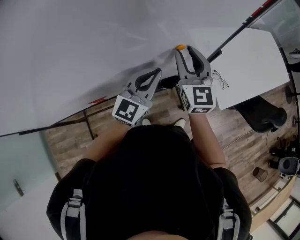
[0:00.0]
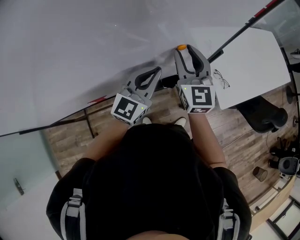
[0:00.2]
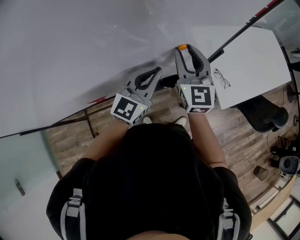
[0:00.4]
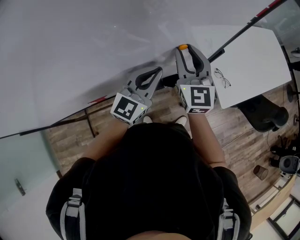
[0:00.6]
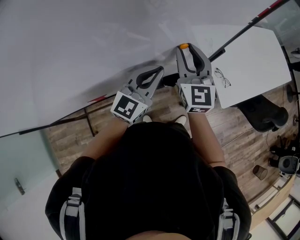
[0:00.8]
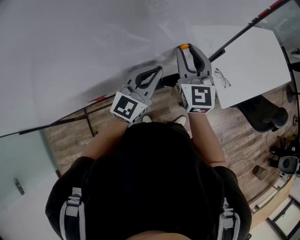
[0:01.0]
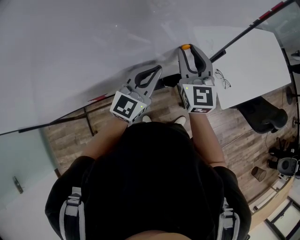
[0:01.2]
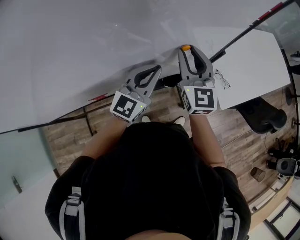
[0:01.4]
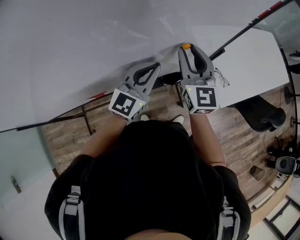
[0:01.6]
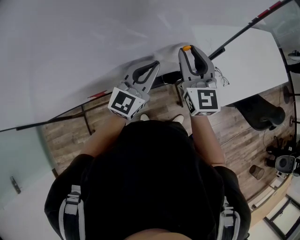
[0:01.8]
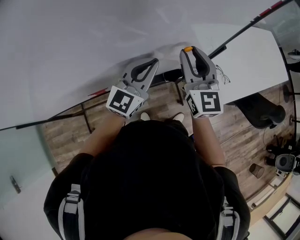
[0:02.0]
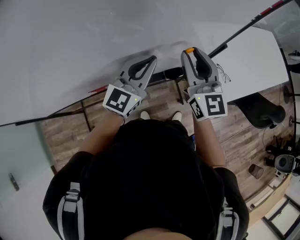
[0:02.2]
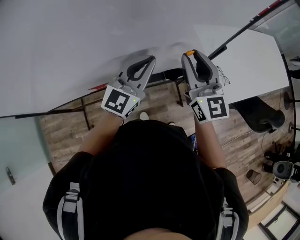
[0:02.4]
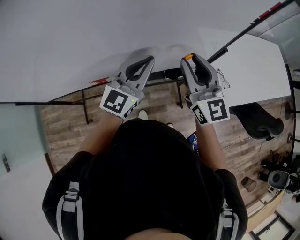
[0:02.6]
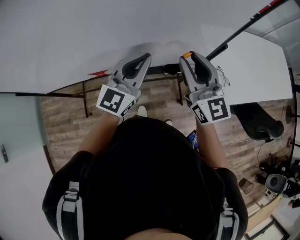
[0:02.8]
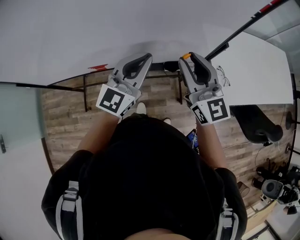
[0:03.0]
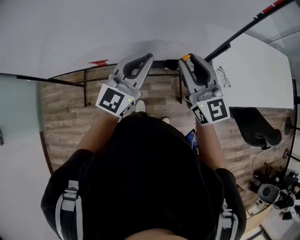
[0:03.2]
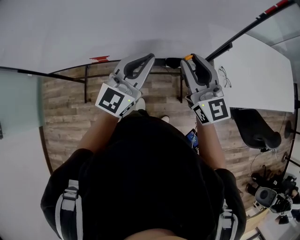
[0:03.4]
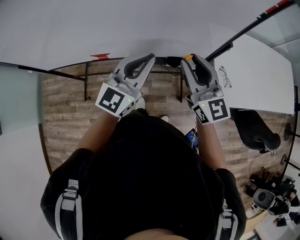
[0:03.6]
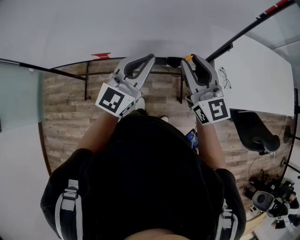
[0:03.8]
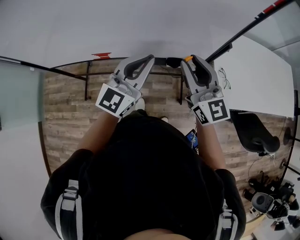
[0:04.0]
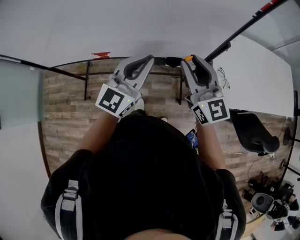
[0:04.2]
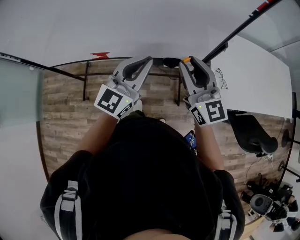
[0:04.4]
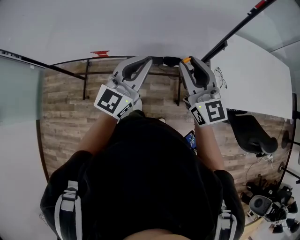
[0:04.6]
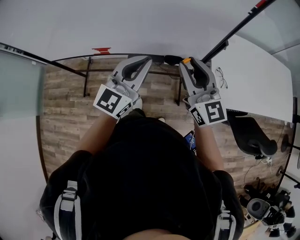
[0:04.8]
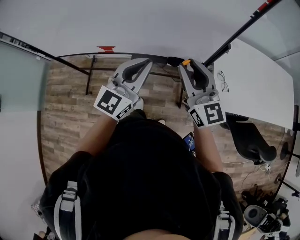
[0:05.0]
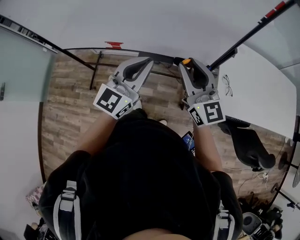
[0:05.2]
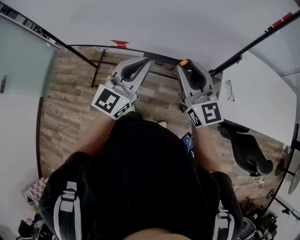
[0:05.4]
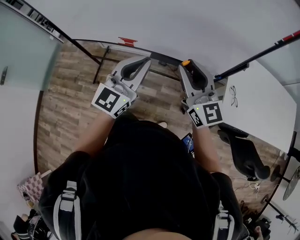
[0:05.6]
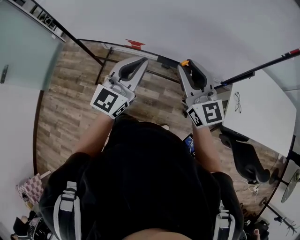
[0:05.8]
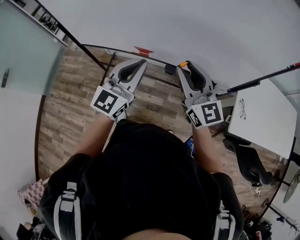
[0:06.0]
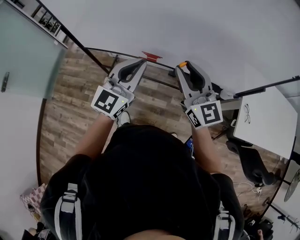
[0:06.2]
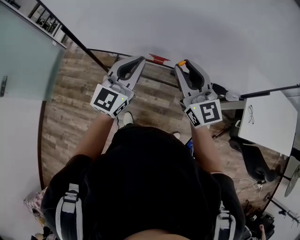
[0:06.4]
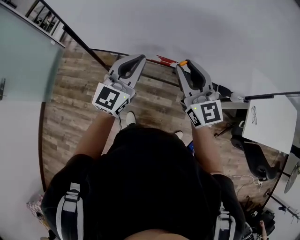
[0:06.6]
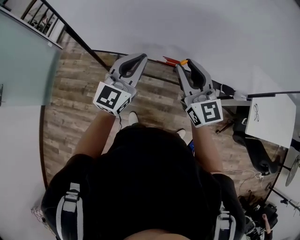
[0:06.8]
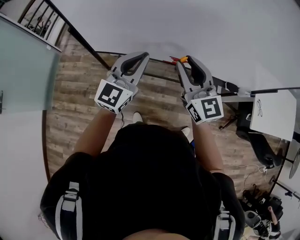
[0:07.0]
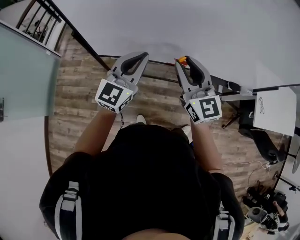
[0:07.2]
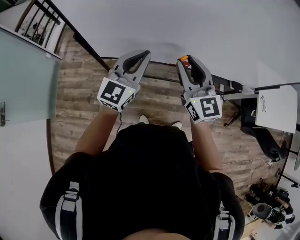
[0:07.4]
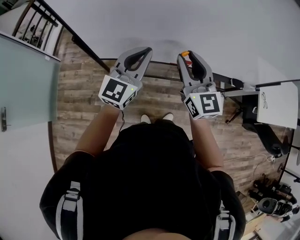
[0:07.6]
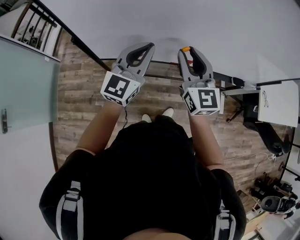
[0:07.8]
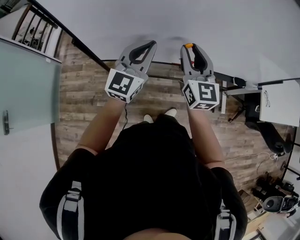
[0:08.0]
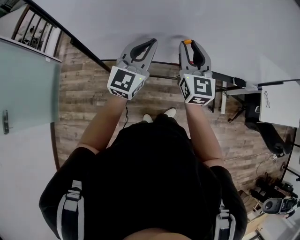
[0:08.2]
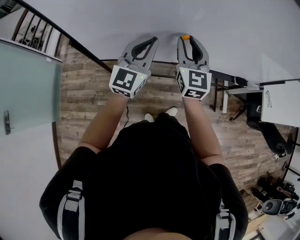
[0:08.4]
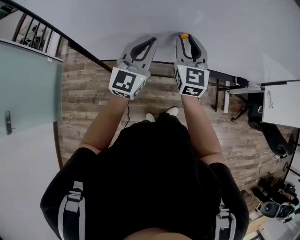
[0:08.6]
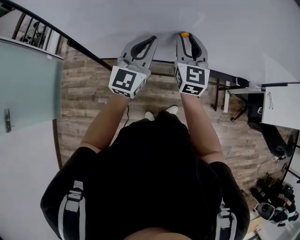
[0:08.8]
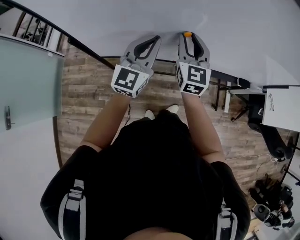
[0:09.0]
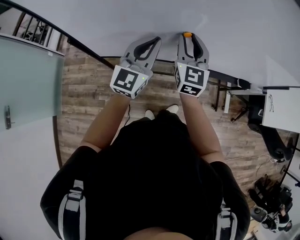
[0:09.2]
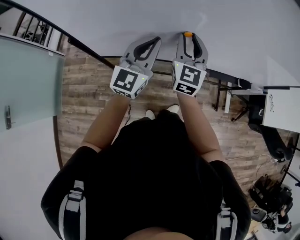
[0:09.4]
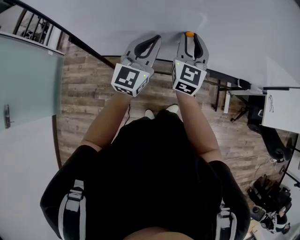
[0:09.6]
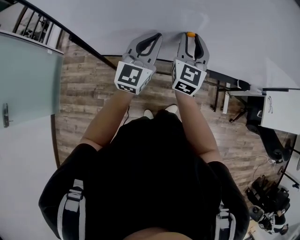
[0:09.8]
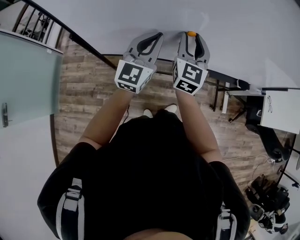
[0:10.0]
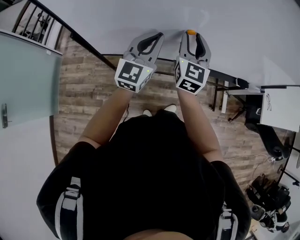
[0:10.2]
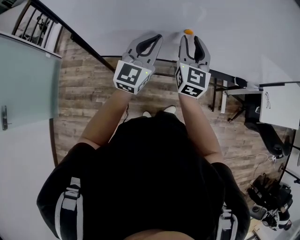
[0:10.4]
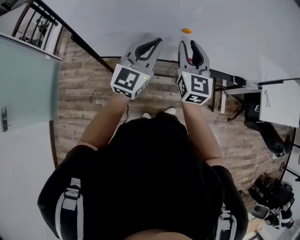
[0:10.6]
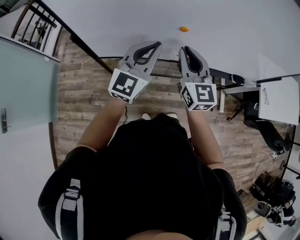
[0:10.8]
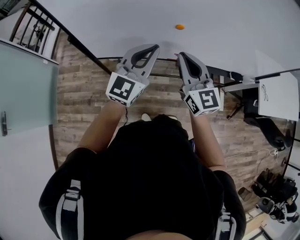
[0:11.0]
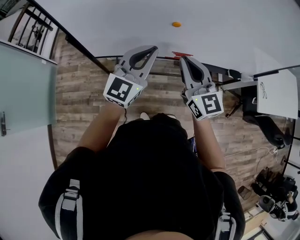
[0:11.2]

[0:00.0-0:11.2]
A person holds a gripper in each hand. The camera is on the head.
0:00.0 to 0:01.6: There are only small adjustments of the grippers.
0:01.6 to 0:03.2: The grippers both shift backward by some 10 cm. The right gripper changes its angle by approximately 30 degrees.
0:03.2 to 0:04.8: Both grippers move backward, about 5 cm.
0:04.8 to 0:06.4: The two grippers go approximately 35 cm to the left.
0:06.4 to 0:08.0: The two grippers go about 25 cm to the left and forward. The right gripper turns by approximately 30 degrees.
0:08.0 to 0:09.6: The right gripper heads forward, covering roughly 10 cm. The left gripper ends up some 5 cm from where it was.
0:09.6 to 0:11.2: The right gripper moves backward, roughly 15 cm, changes its angle by approximately 30 degrees, and closes up. The left gripper is displaced backward by some 10 cm.

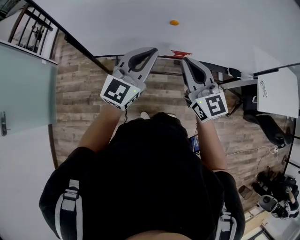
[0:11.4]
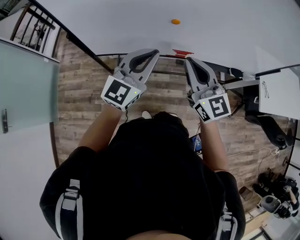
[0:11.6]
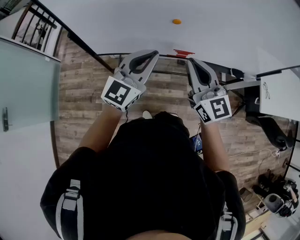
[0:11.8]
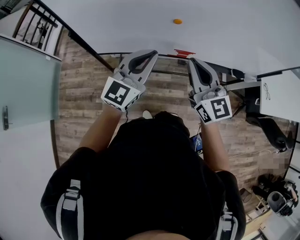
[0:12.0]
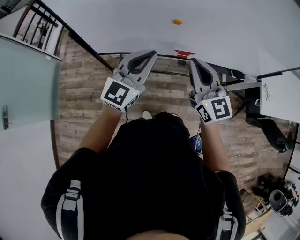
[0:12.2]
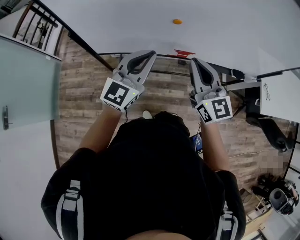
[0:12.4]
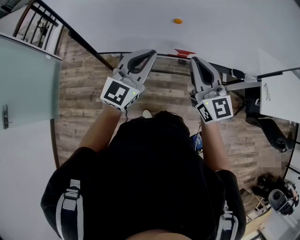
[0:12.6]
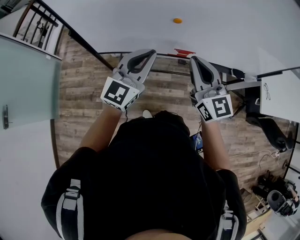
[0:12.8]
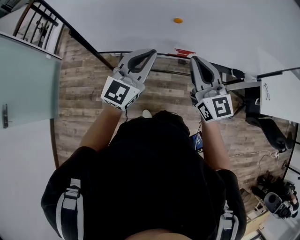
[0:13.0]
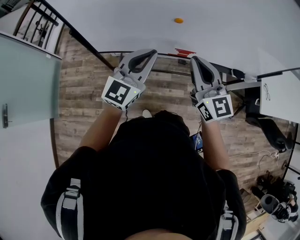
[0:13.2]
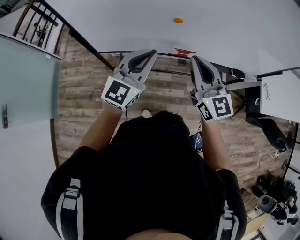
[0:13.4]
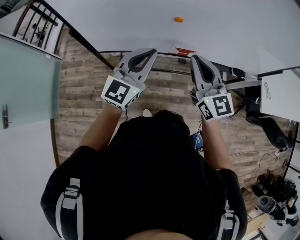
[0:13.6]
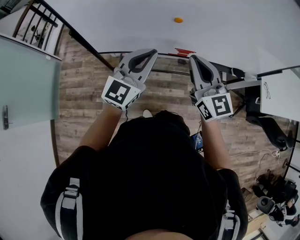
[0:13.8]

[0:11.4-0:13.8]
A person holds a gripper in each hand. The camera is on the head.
0:11.4 to 0:12.6: There are only small adjustments of the grippers.
0:12.6 to 0:13.8: The two grippers keep their place.

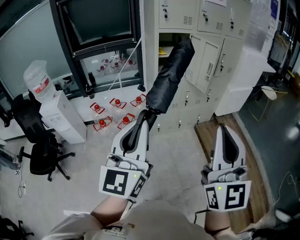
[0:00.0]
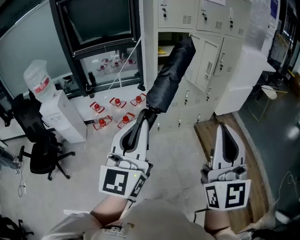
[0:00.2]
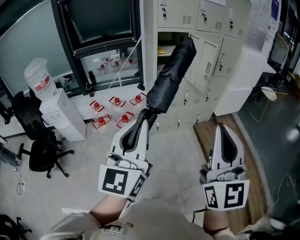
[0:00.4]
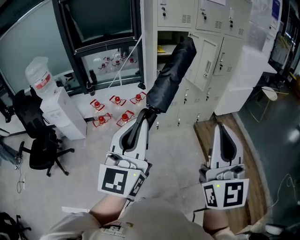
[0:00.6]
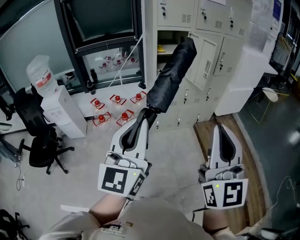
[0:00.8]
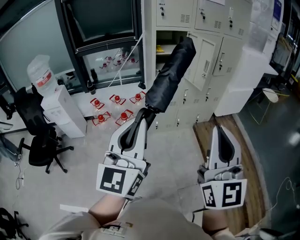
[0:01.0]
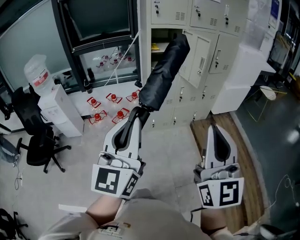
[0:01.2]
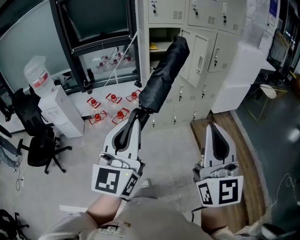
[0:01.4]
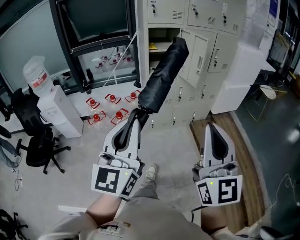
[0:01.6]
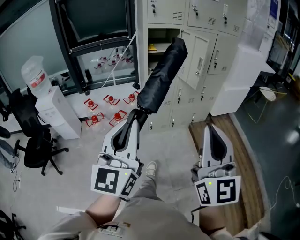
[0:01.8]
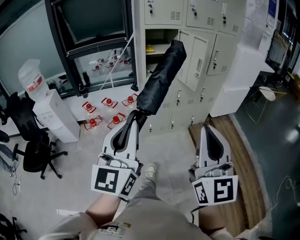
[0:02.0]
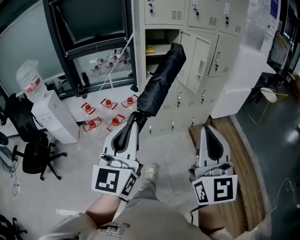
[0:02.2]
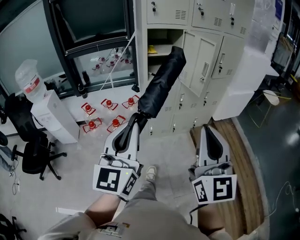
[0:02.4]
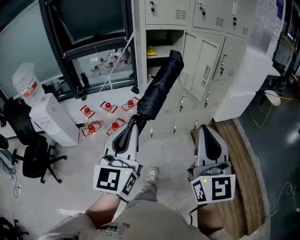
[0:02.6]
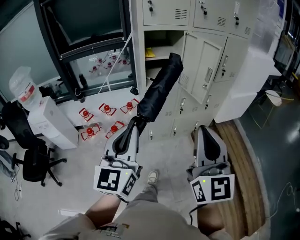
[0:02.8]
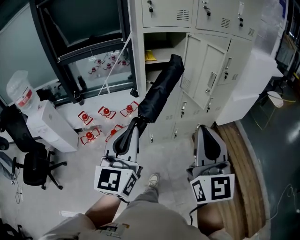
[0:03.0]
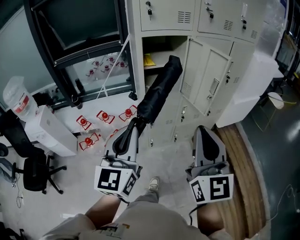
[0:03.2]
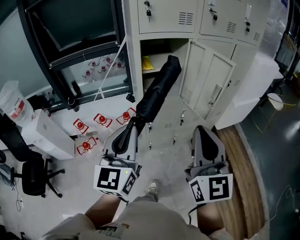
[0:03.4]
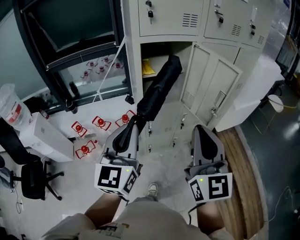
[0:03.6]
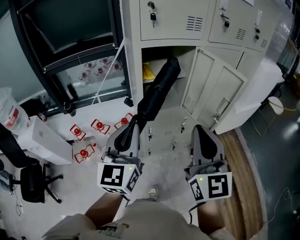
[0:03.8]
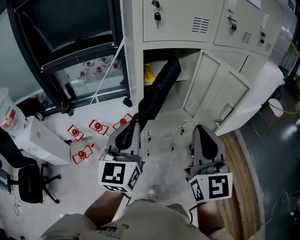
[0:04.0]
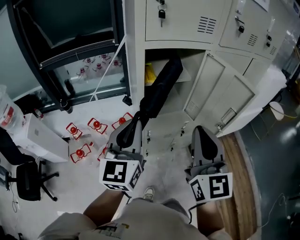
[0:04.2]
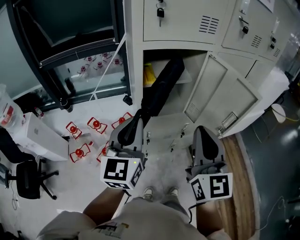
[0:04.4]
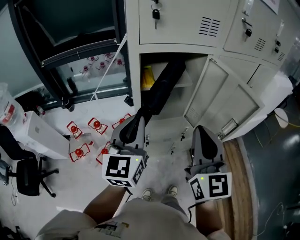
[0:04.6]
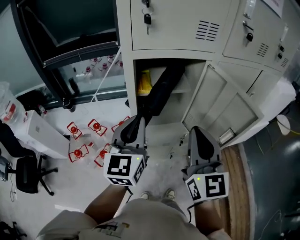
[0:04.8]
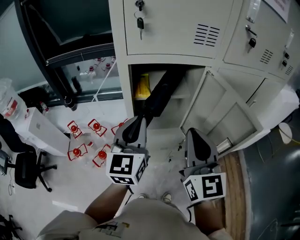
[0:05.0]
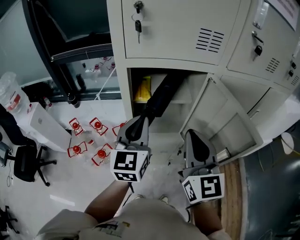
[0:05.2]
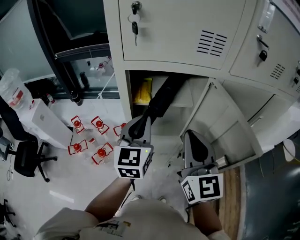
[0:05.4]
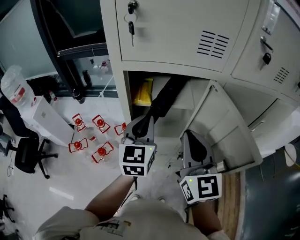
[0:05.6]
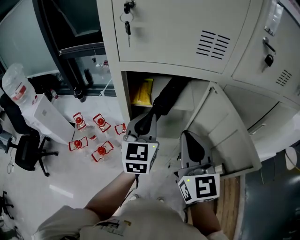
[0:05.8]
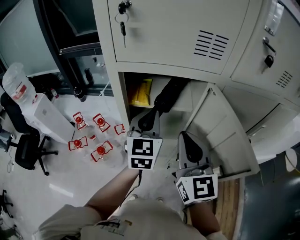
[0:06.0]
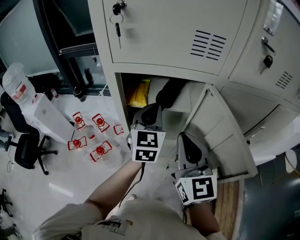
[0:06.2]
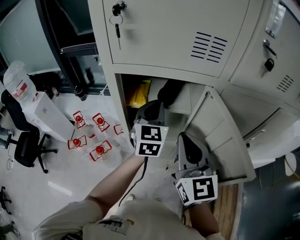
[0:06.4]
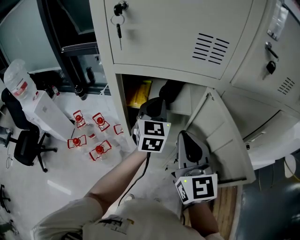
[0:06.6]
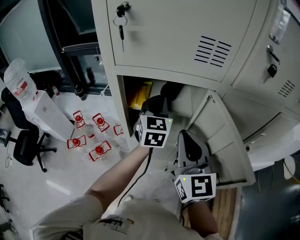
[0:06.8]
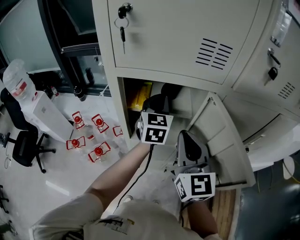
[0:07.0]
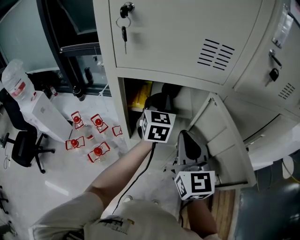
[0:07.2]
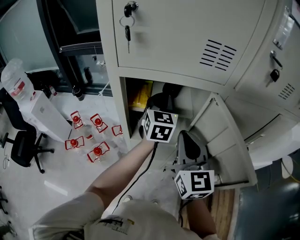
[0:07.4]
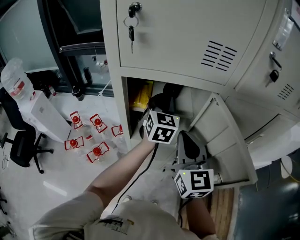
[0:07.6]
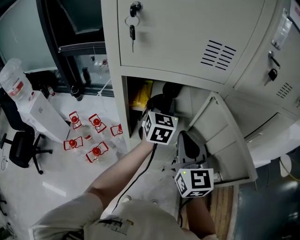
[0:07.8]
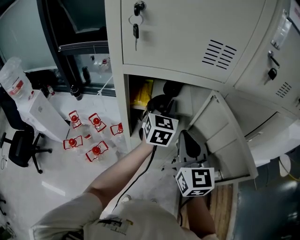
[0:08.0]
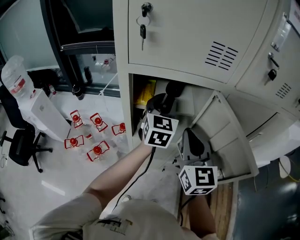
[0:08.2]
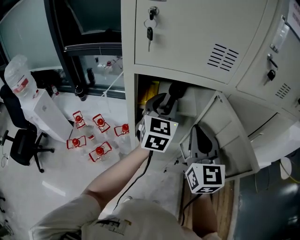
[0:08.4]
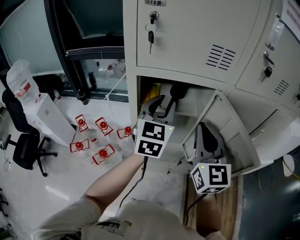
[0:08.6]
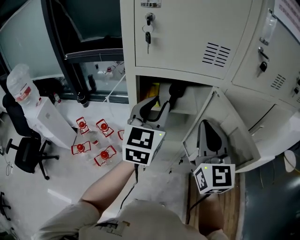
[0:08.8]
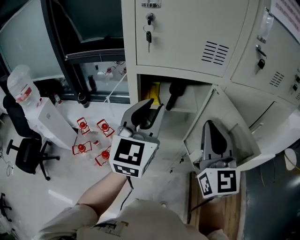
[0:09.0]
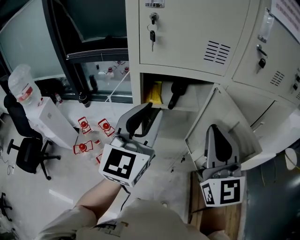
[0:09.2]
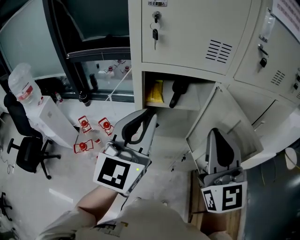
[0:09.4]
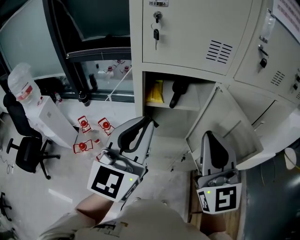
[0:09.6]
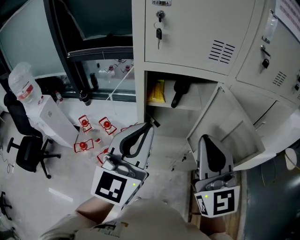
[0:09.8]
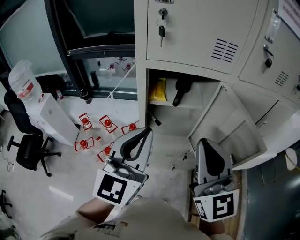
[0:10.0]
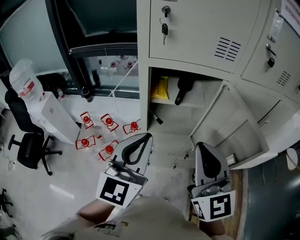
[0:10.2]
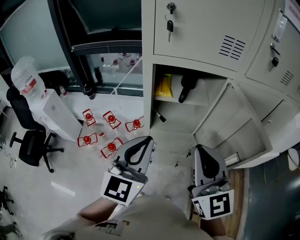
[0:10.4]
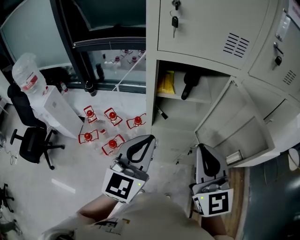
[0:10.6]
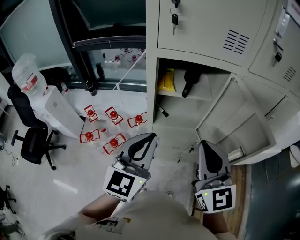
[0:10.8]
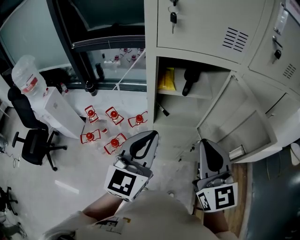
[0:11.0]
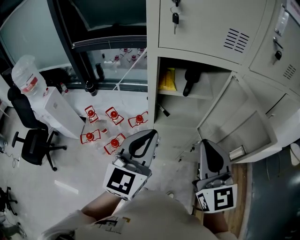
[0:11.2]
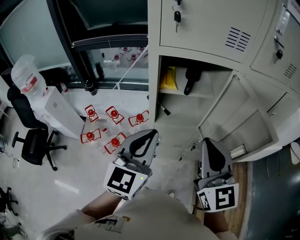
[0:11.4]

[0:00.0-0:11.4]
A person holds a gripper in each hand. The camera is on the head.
0:00.0 to 0:01.4: The grippers both shift to the right by some 5 cm.
0:01.4 to 0:02.8: Both grippers travel together forward, some 25 cm.
0:02.8 to 0:04.2: Both grippers travel together forward, about 30 cm.
0:04.2 to 0:05.6: Both grippers travel together forward and to the right, roughly 20 cm.
0:05.6 to 0:07.2: The left gripper heads forward and to the right, covering roughly 15 cm. The right gripper shifts approximately 5 cm forward.
0:07.2 to 0:08.6: The left gripper travels backward and upward by some 10 cm, and opens; the right gripper shifts by about 5 cm.
0:08.6 to 0:10.0: The right gripper is displaced backward by about 10 cm. Meanwhile the left gripper shifts approximately 20 cm backward, and closes.
0:10.0 to 0:11.4: The two grippers go about 5 cm downward.
